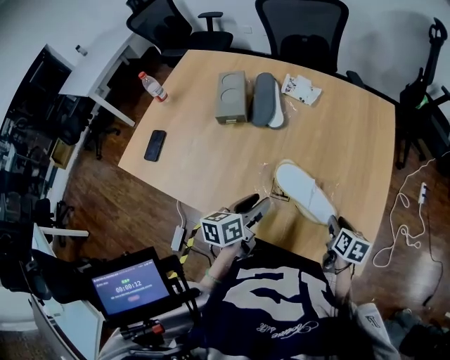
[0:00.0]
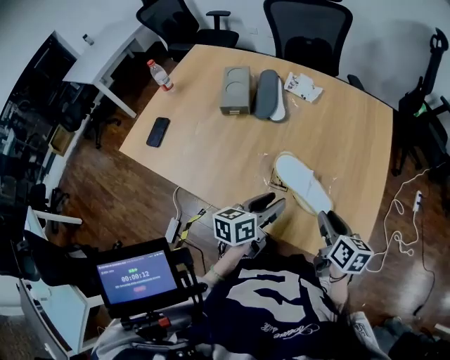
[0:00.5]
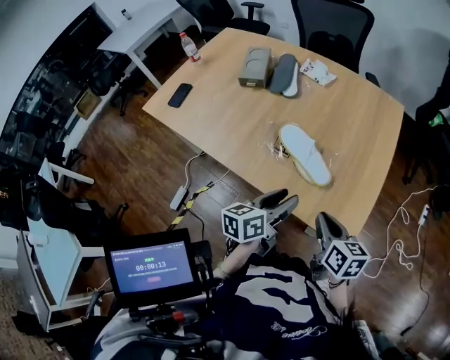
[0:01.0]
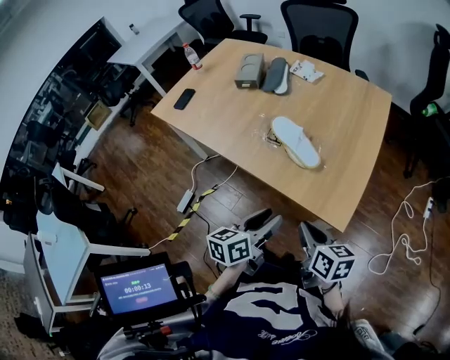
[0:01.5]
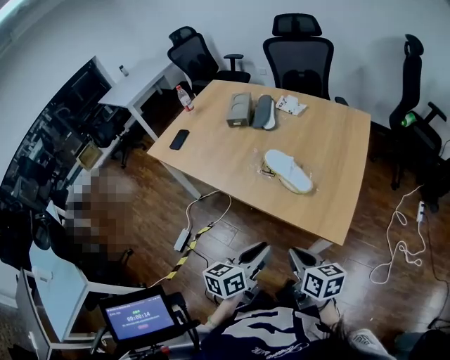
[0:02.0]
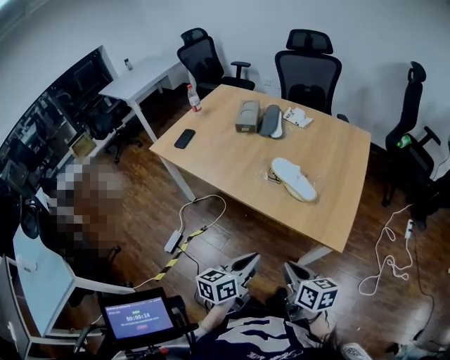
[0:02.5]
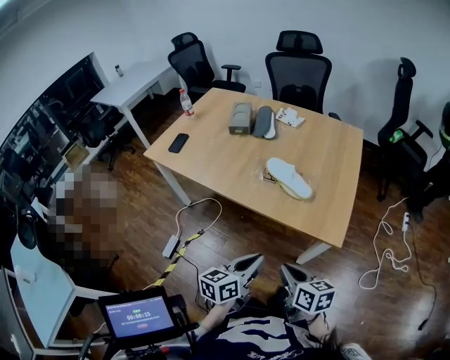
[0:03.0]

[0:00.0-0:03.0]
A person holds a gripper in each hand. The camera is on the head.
0.0 to 1.5 s: The left gripper travels backward and to the right by some 35 cm; the right gripper is displaced backward and upward by roughly 25 cm, rotates roughly 40 degrees, and closes its fingers.
1.5 to 3.0 s: Both grippers travel together to the left and backward, roughly 15 cm. The left gripper closes its fingers.

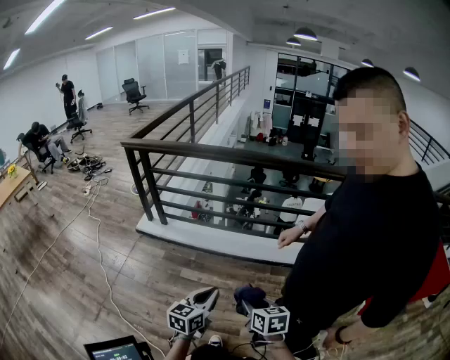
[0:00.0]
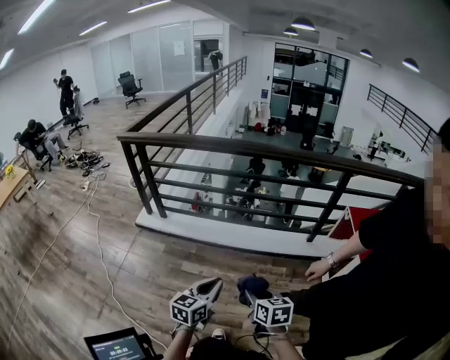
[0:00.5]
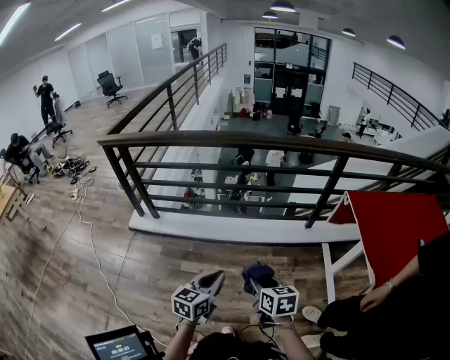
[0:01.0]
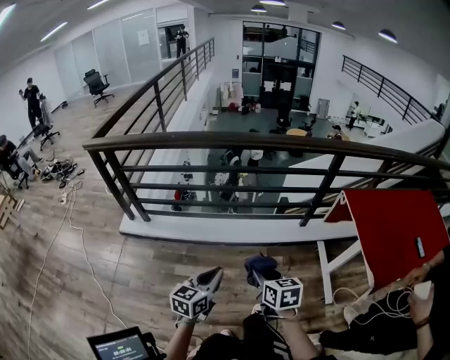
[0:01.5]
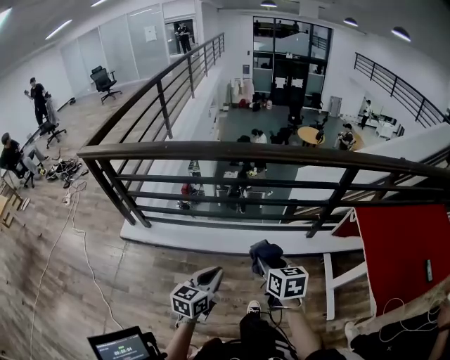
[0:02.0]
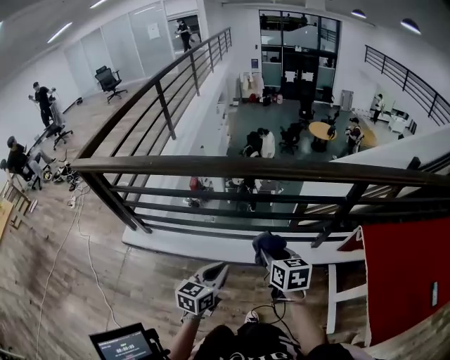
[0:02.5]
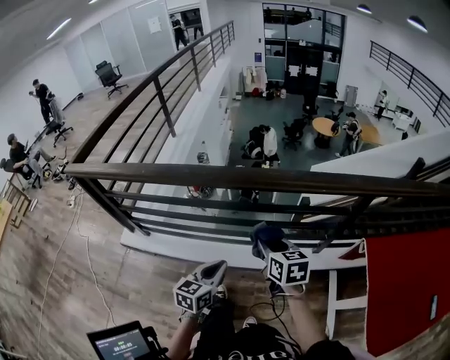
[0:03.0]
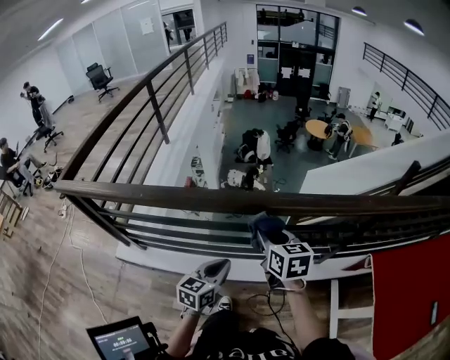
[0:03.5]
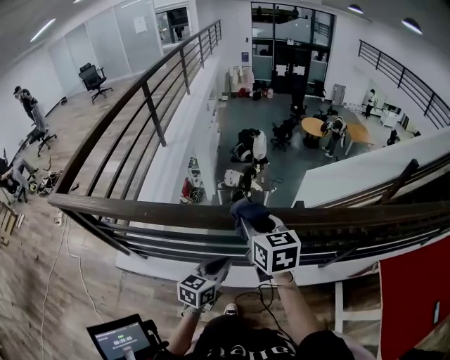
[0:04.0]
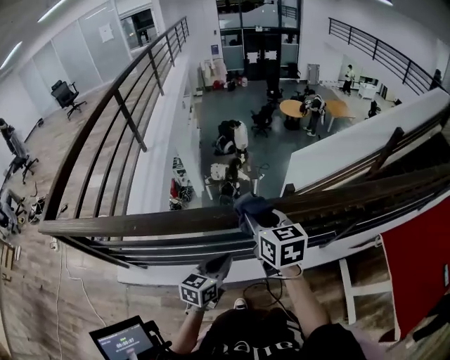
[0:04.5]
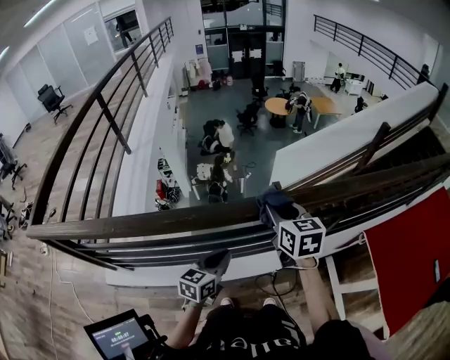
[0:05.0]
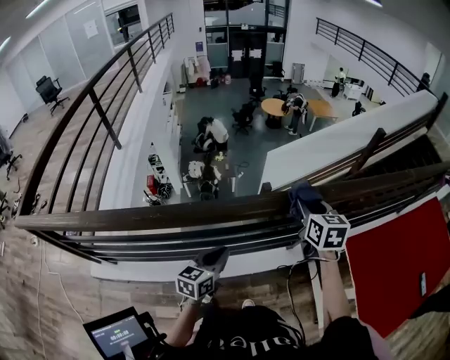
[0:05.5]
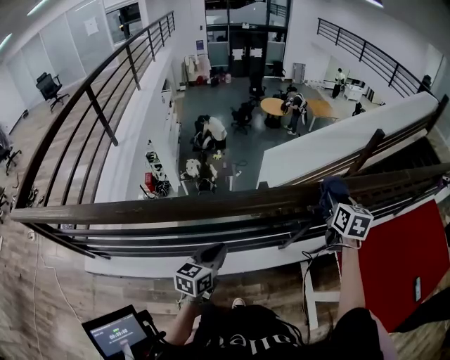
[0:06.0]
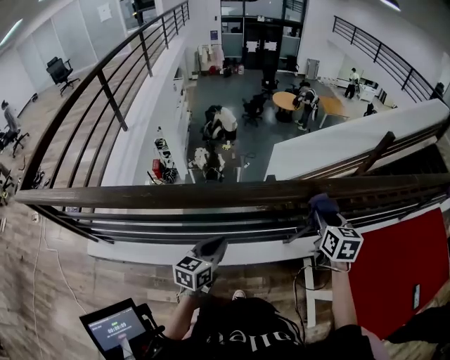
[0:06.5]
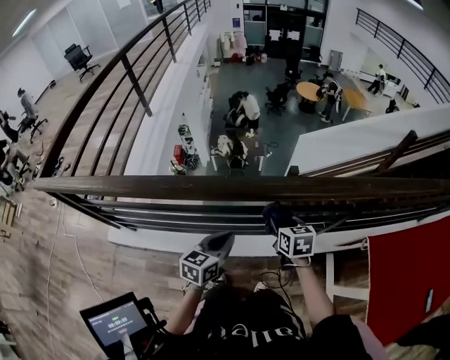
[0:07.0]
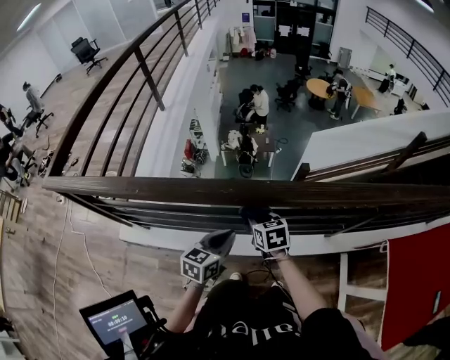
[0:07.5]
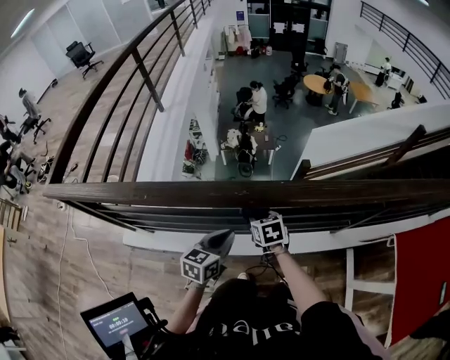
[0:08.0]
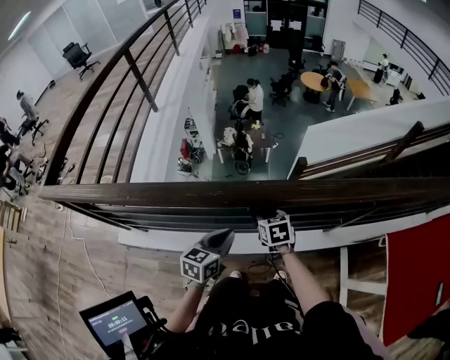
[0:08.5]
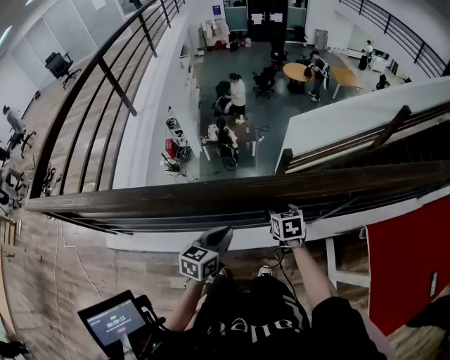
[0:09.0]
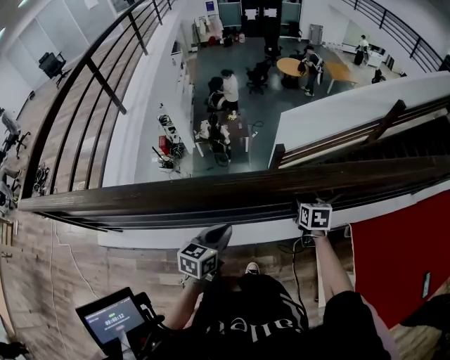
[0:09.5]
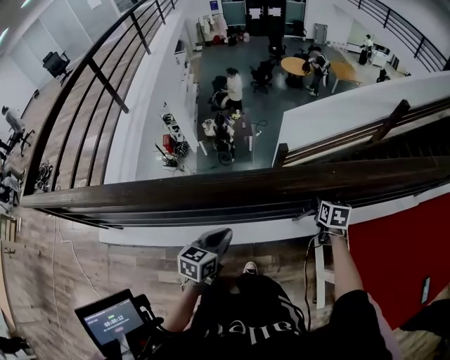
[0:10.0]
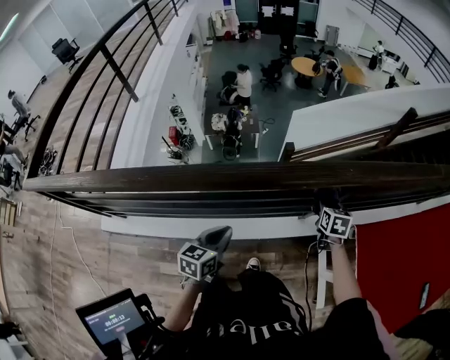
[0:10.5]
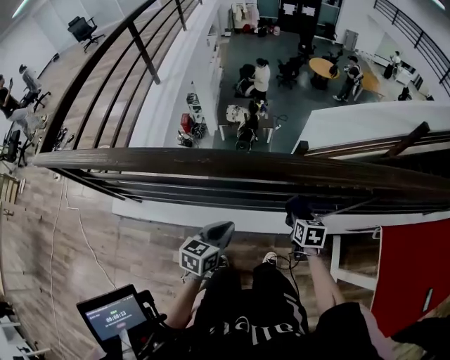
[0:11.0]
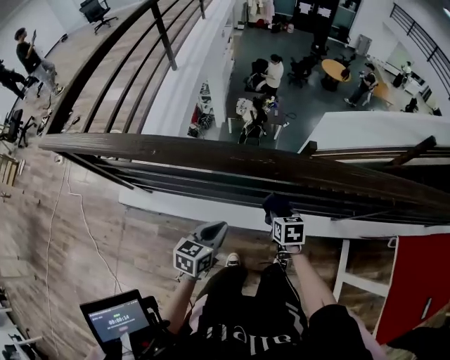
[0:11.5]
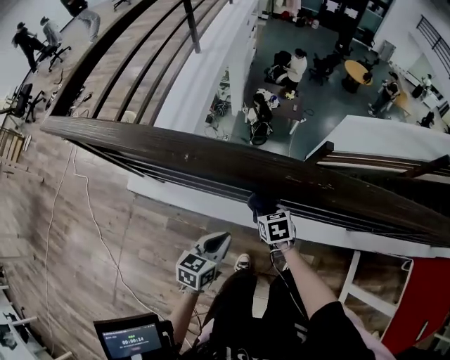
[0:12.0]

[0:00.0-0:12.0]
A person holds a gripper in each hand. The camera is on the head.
0.0 to 2.0 s: Both grippers travel together forward, roughly 35 cm.
2.0 to 4.0 s: Both grippers are carried forward, approximately 50 cm.
4.0 to 6.0 s: The right gripper travels to the right by some 60 cm, and swivels approximately 40 degrees. The left gripper heads to the right, covering some 25 cm.
6.0 to 8.0 s: The right gripper goes approximately 60 cm to the left and downward, and rotates some 40 degrees. Meanwhile the left gripper heads to the left, covering roughly 30 cm.
8.0 to 10.0 s: The right gripper is displaced to the right by roughly 60 cm, and turns by some 30 degrees, while the left gripper travels to the right by roughly 35 cm.
10.0 to 12.0 s: Both grippers are carried about 60 cm. The right gripper changes its angle by some 40 degrees.

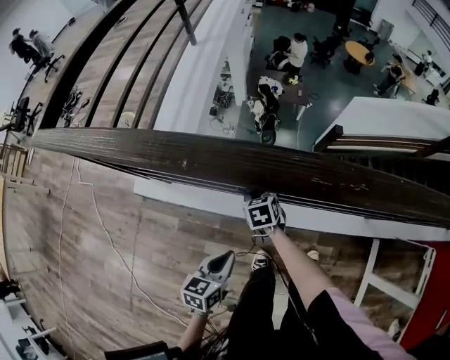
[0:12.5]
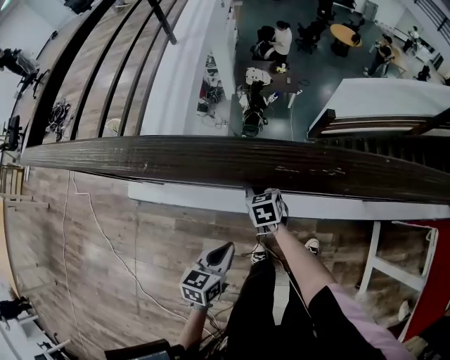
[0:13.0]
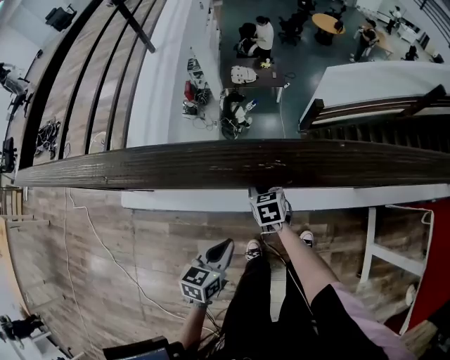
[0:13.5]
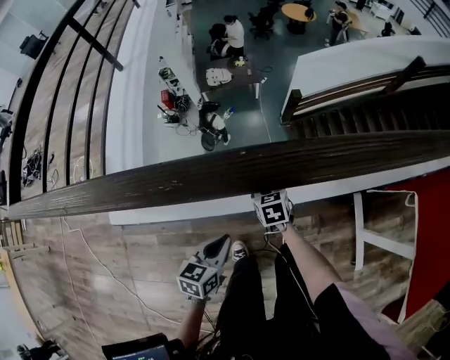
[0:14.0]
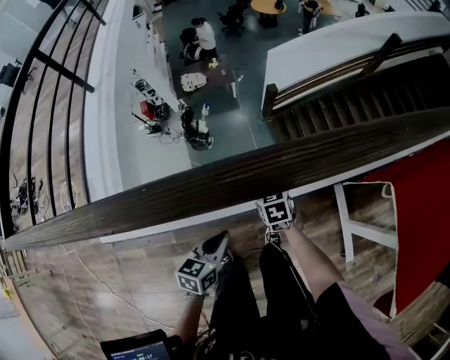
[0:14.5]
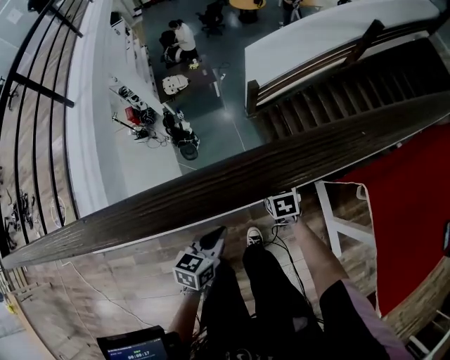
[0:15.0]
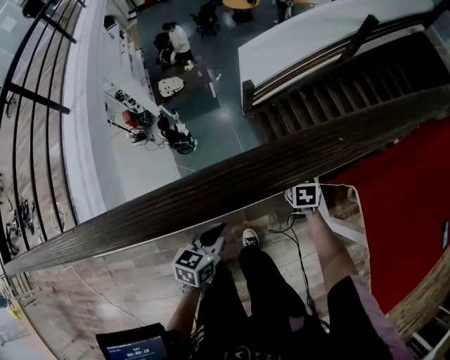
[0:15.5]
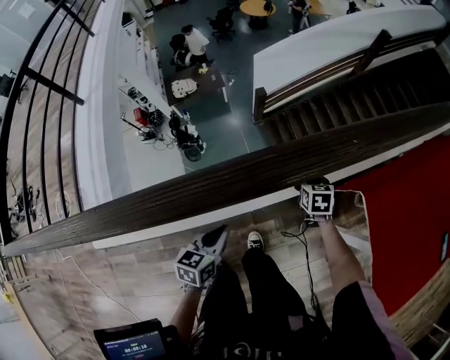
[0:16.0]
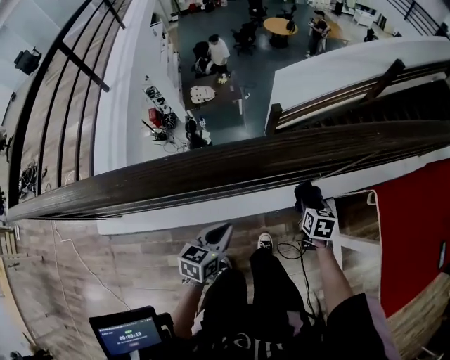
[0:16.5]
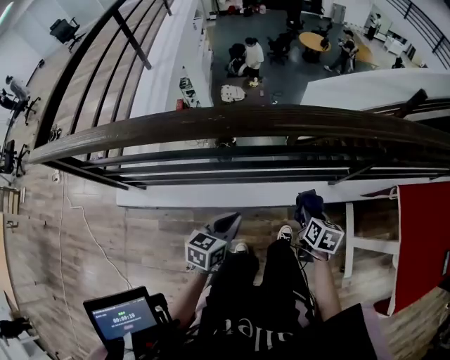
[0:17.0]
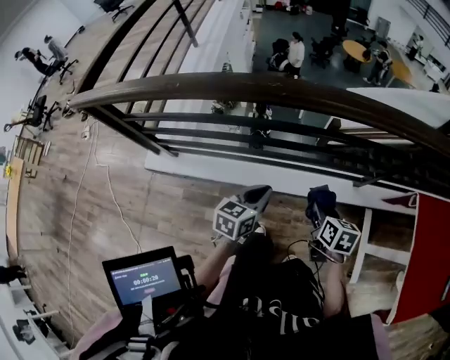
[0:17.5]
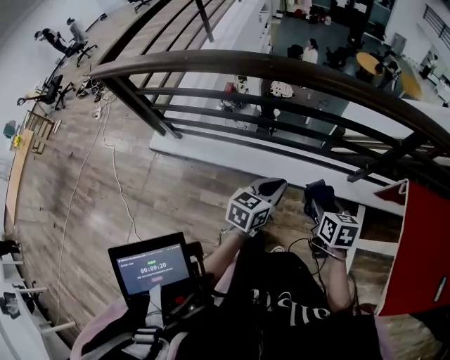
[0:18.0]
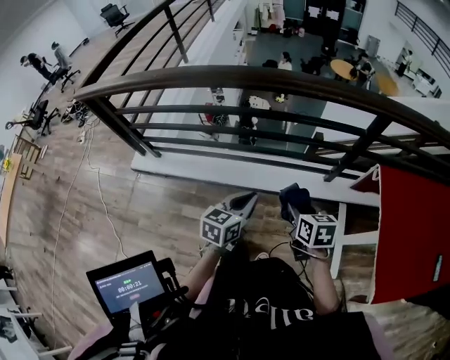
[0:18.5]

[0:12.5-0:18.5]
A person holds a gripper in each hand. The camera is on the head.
12.5 to 14.5 s: Both grippers are carried to the right, roughly 50 cm. The right gripper swivels some 20 degrees. Meanwhile the left gripper rotates roughly 30 degrees.
14.5 to 16.5 s: The left gripper is displaced upward and to the right by approximately 10 cm. Meanwhile the right gripper is displaced to the right by about 25 cm, and swivels some 20 degrees.
16.5 to 18.5 s: The left gripper moves about 30 cm; the right gripper changes place by some 40 cm, and rotates some 30 degrees.

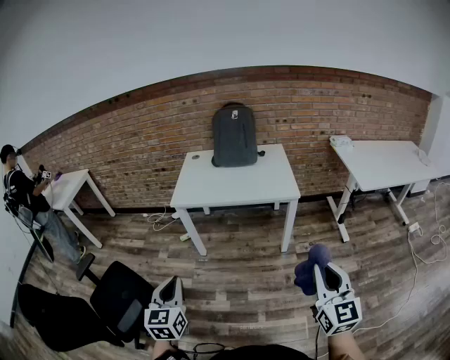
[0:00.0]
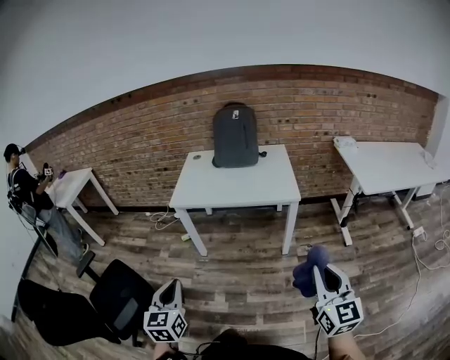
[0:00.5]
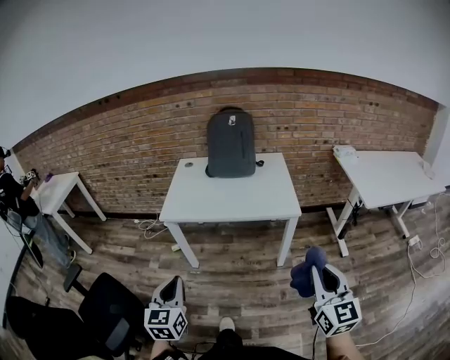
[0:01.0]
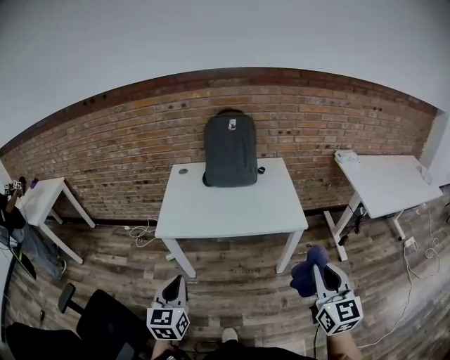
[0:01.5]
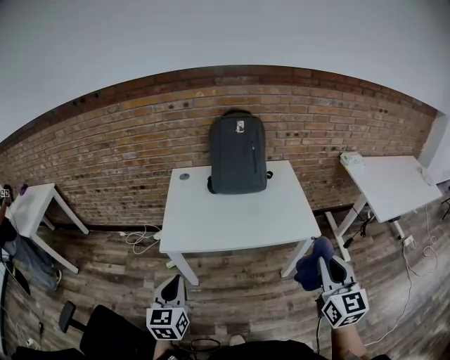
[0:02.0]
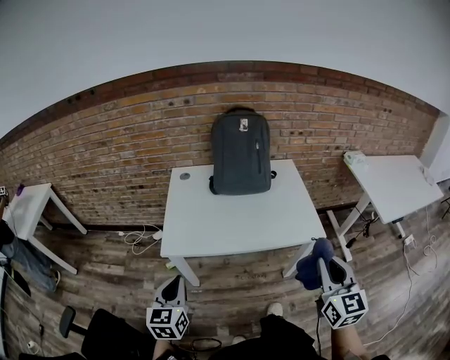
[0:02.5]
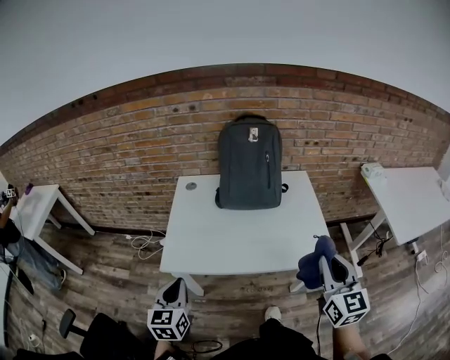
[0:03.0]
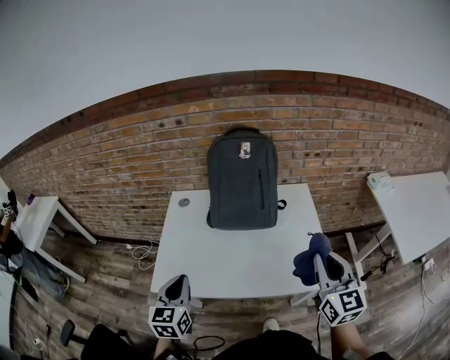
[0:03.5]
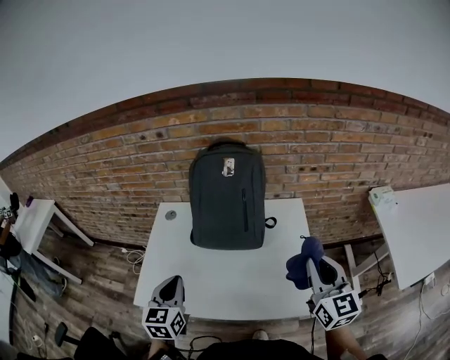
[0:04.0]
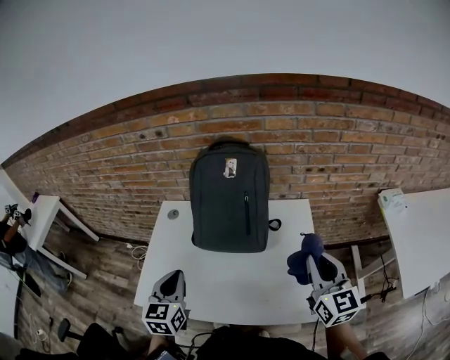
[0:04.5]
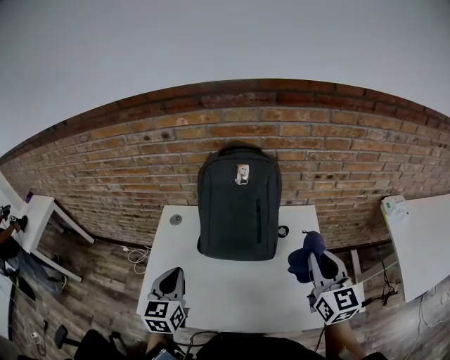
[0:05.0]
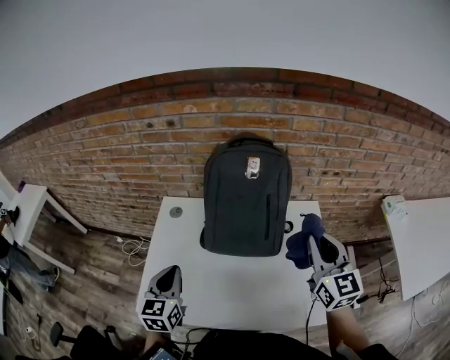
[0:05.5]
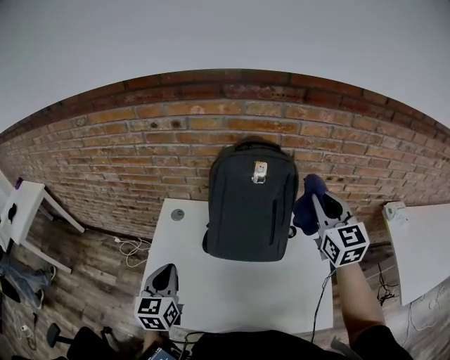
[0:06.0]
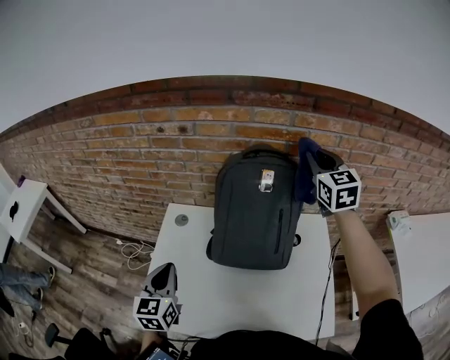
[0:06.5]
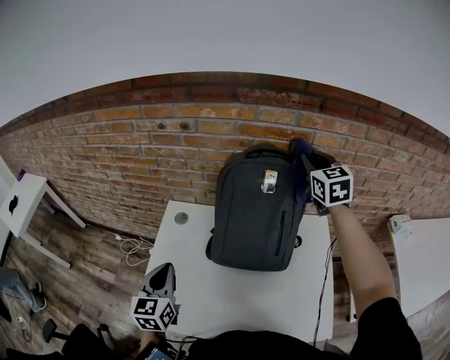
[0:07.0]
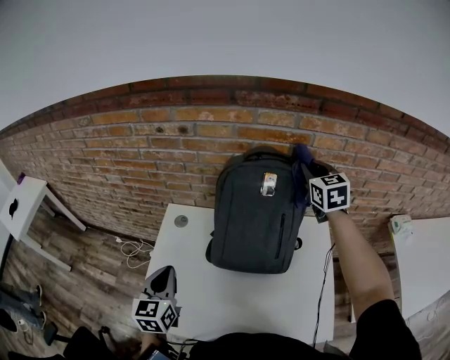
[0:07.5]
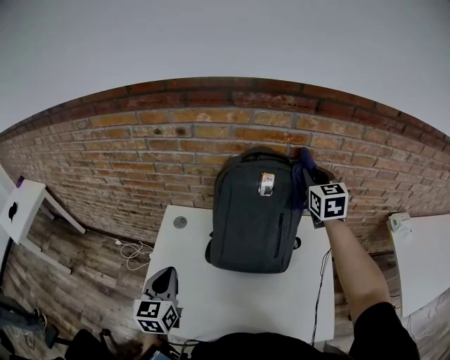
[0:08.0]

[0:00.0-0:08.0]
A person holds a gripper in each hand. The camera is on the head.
0.0 to 2.0 s: The two grippers go approximately 30 cm forward.
2.0 to 4.0 s: The right gripper shifts about 35 cm forward. The left gripper goes approximately 30 cm forward and to the right.
4.0 to 6.0 s: The right gripper travels forward by about 25 cm. The left gripper is displaced forward and to the left by about 15 cm.
6.0 to 8.0 s: The right gripper moves forward, some 15 cm.
